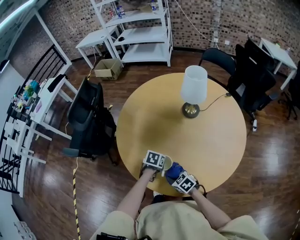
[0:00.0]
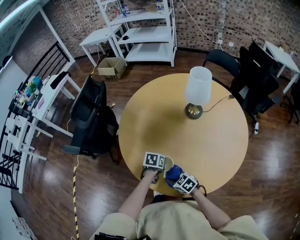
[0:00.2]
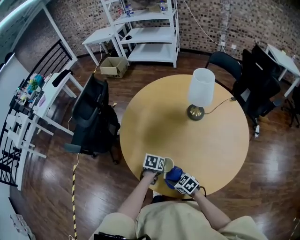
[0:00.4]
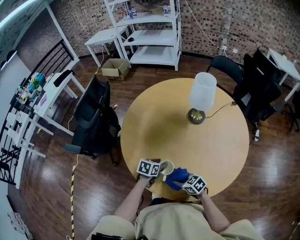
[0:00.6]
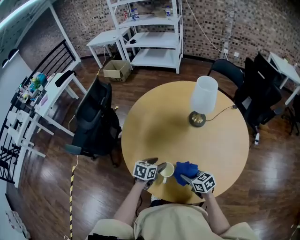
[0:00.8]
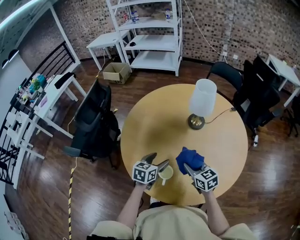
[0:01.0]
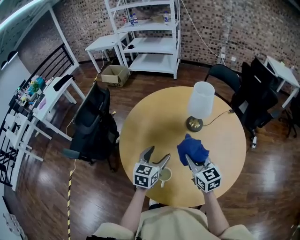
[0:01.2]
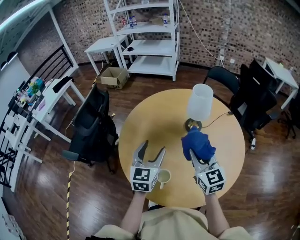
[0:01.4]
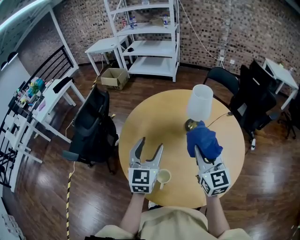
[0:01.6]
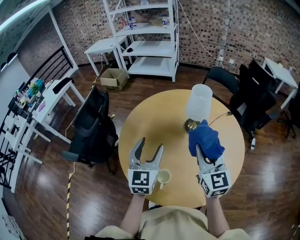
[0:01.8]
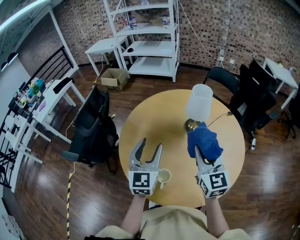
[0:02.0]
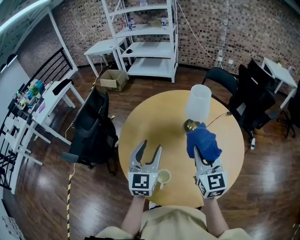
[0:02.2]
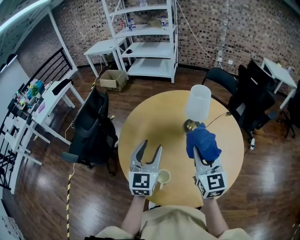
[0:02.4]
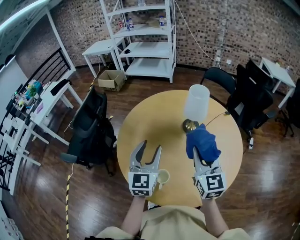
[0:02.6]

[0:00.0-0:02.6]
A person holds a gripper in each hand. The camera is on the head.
0:00.0 to 0:01.2: The grippers both shift upward by roughly 25 cm. The right gripper tilts its fingers some 30 degrees upward, while the left gripper angles its fingers upward, by approximately 40 degrees, and opens.
0:01.2 to 0:02.6: Both grippers move upward, roughly 10 cm. The left gripper rotates some 30 degrees, while the right gripper swivels some 20 degrees.

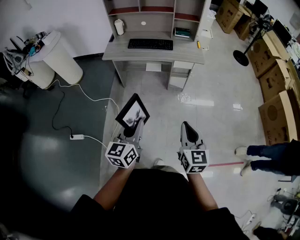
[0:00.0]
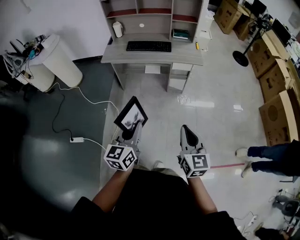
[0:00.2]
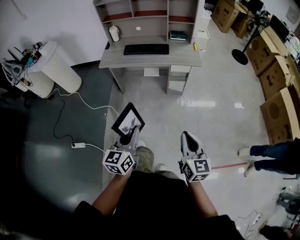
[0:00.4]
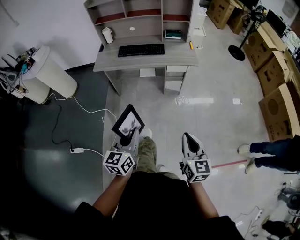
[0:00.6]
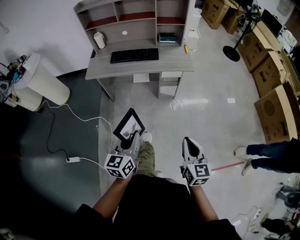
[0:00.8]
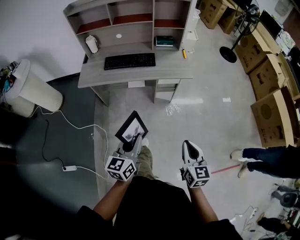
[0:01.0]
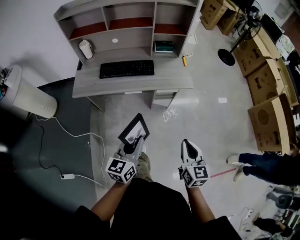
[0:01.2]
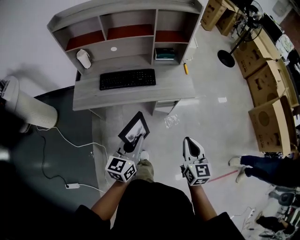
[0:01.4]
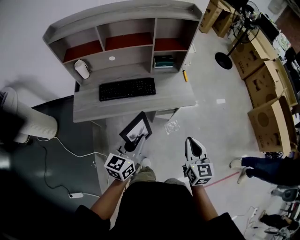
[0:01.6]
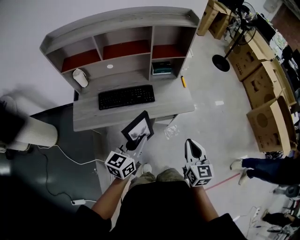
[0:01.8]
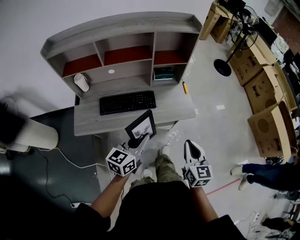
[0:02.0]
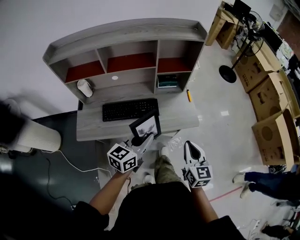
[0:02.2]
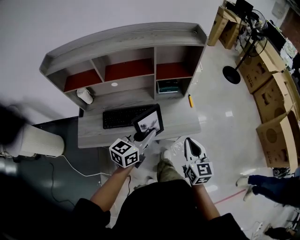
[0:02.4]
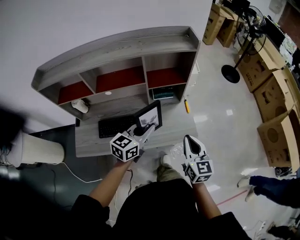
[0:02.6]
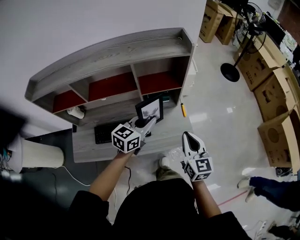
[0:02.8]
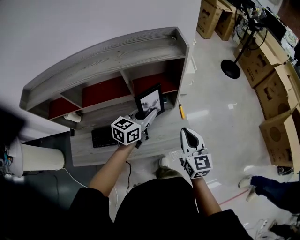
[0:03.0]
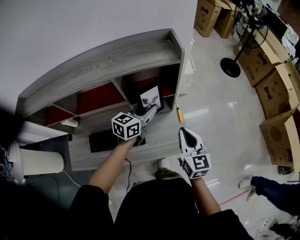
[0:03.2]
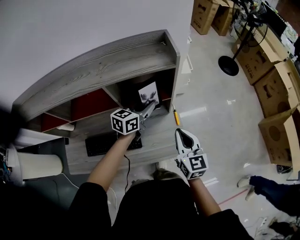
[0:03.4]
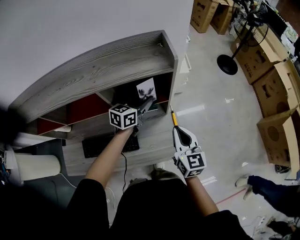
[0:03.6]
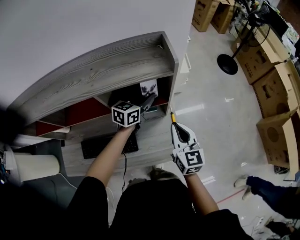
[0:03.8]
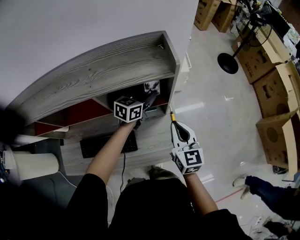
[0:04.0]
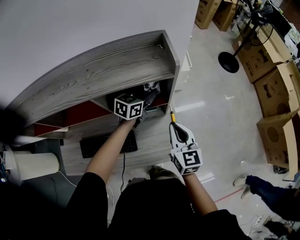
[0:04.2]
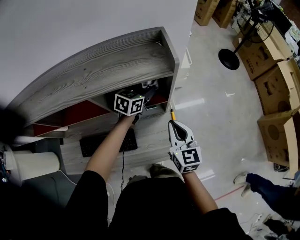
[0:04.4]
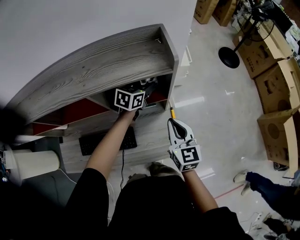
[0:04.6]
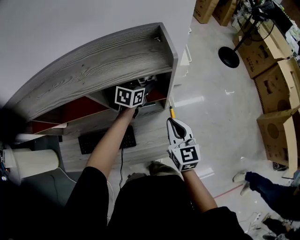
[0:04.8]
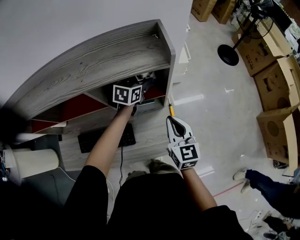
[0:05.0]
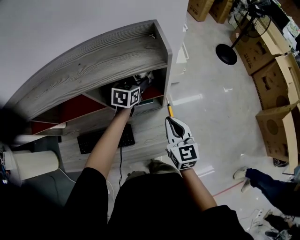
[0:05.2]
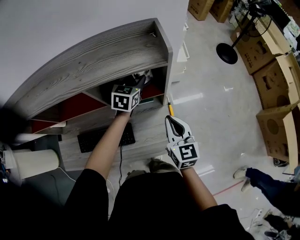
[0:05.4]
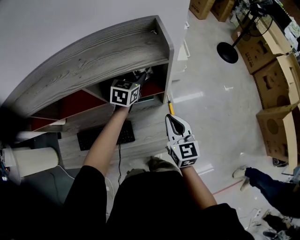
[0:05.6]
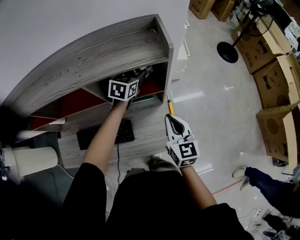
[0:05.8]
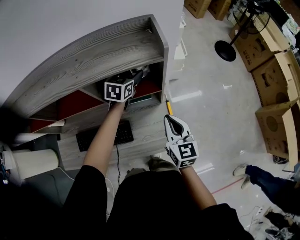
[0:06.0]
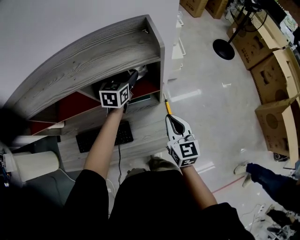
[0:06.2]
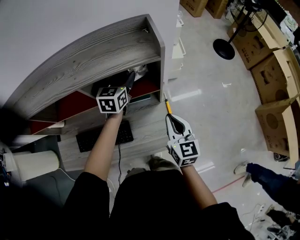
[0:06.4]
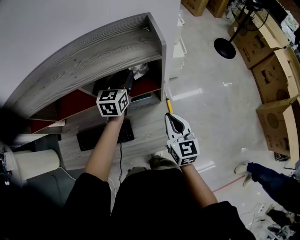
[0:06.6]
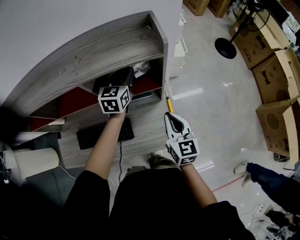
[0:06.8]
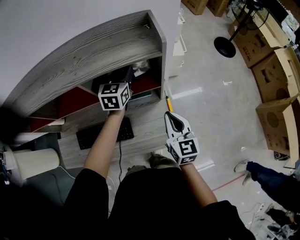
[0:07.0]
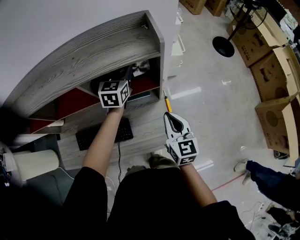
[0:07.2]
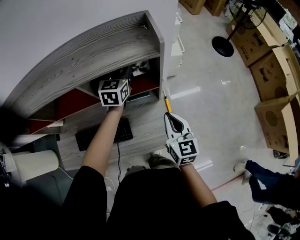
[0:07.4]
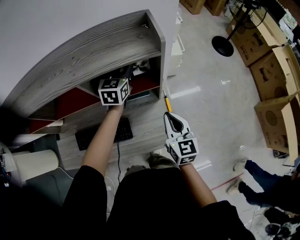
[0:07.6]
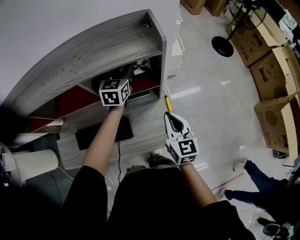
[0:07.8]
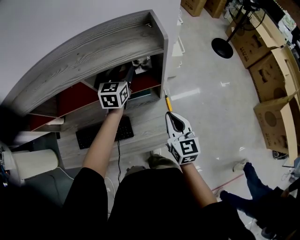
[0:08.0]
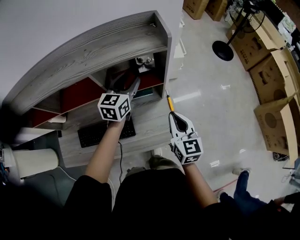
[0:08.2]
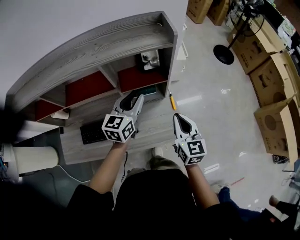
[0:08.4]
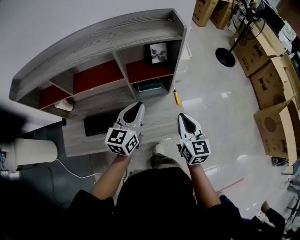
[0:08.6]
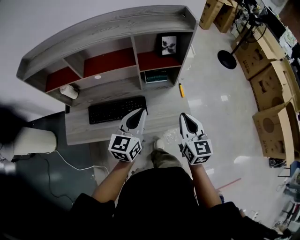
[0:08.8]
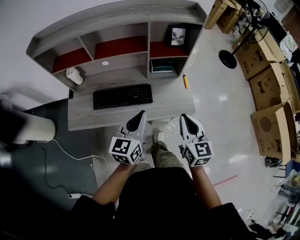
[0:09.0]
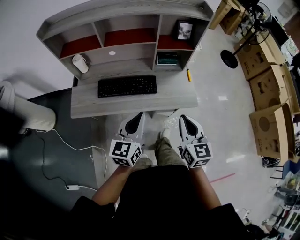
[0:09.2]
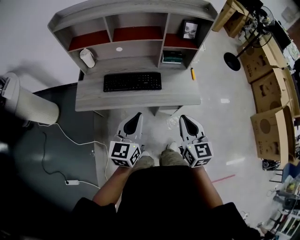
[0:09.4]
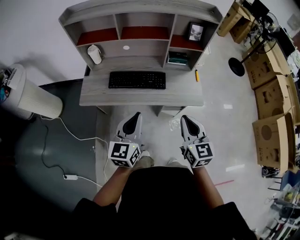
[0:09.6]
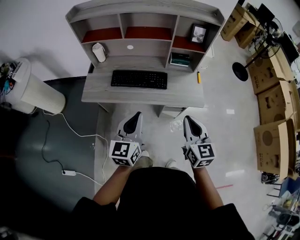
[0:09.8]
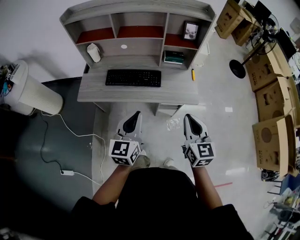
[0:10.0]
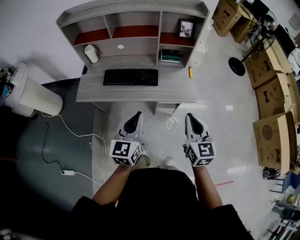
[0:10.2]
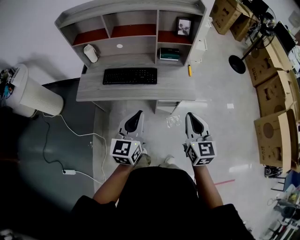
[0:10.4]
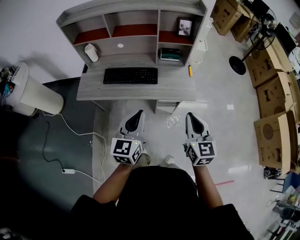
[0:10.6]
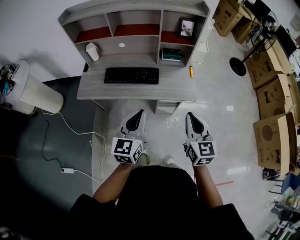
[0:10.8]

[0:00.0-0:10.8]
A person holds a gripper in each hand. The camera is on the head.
0:00.0 to 0:01.6: The pair of grippers is taken forward, approximately 40 cm. The left gripper swivels roughly 20 degrees.
0:01.6 to 0:03.0: Both grippers travel together forward, about 40 cm.
0:03.0 to 0:04.6: The left gripper shifts some 25 cm forward; the right gripper goes approximately 15 cm forward.
0:04.6 to 0:06.2: The left gripper goes approximately 5 cm to the left, and opens.
0:06.2 to 0:07.8: The grippers stay close to where they were, moving slightly.
0:07.8 to 0:09.2: The left gripper is displaced backward by approximately 60 cm, and closes. The right gripper shifts some 35 cm backward.
0:09.2 to 0:10.8: The right gripper is displaced backward and to the right by roughly 10 cm. The left gripper heads backward, covering roughly 10 cm.

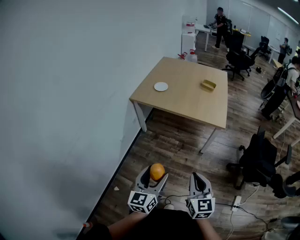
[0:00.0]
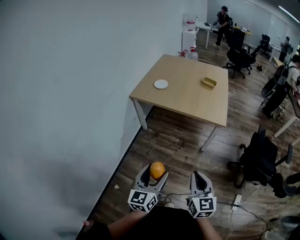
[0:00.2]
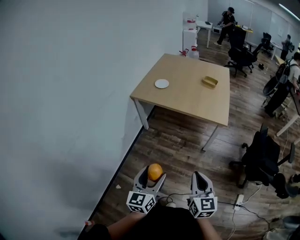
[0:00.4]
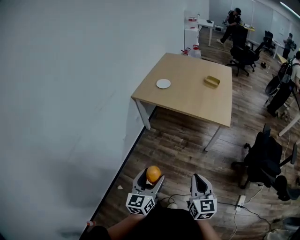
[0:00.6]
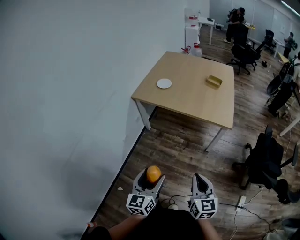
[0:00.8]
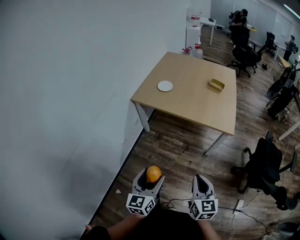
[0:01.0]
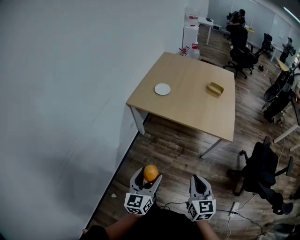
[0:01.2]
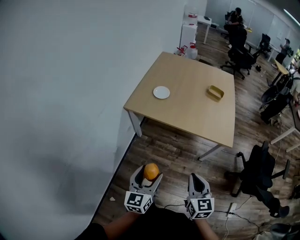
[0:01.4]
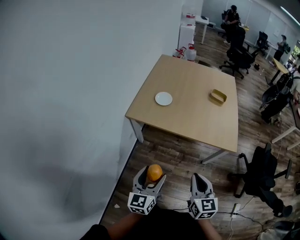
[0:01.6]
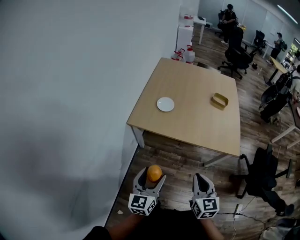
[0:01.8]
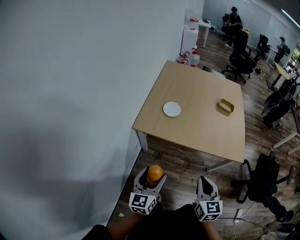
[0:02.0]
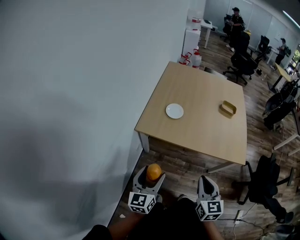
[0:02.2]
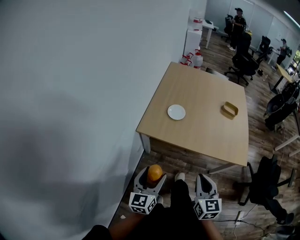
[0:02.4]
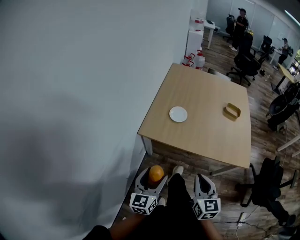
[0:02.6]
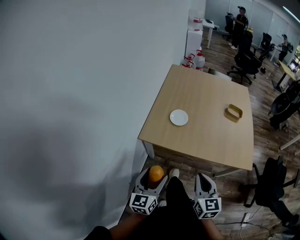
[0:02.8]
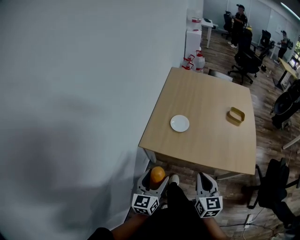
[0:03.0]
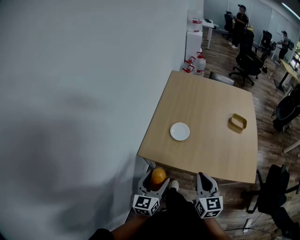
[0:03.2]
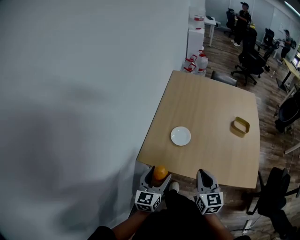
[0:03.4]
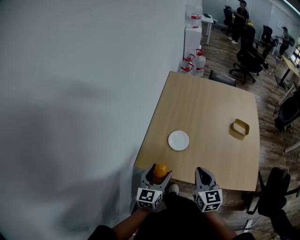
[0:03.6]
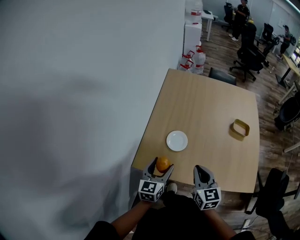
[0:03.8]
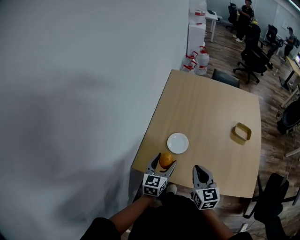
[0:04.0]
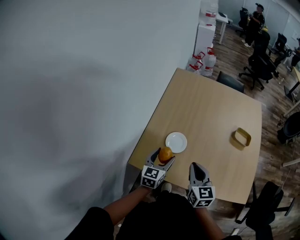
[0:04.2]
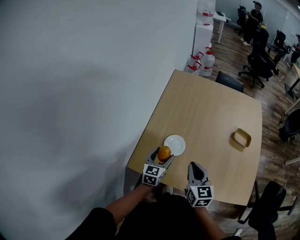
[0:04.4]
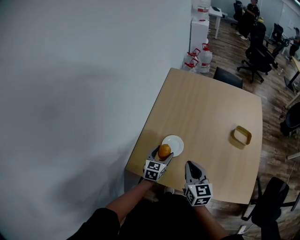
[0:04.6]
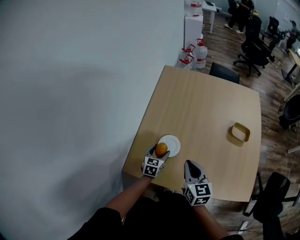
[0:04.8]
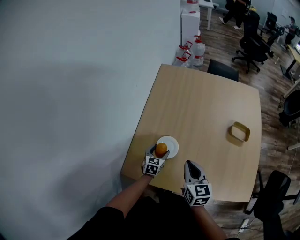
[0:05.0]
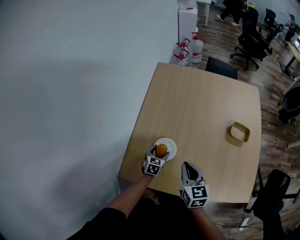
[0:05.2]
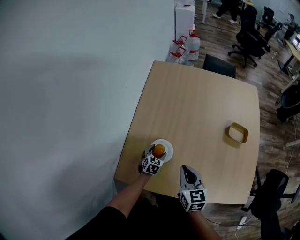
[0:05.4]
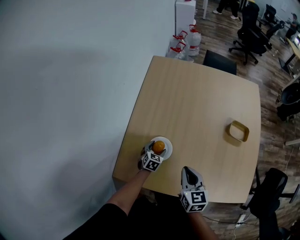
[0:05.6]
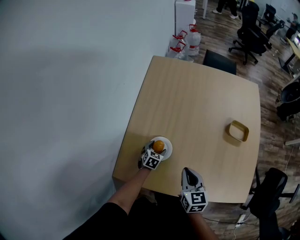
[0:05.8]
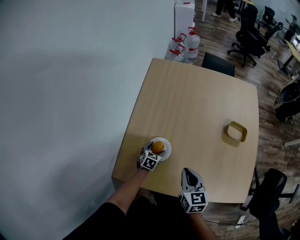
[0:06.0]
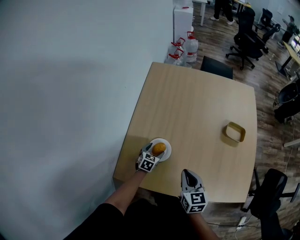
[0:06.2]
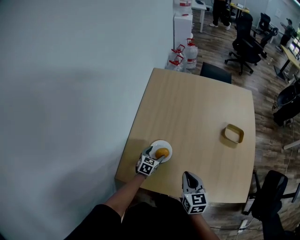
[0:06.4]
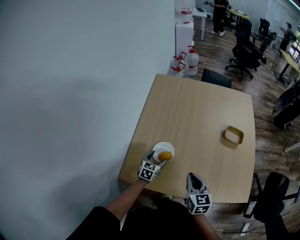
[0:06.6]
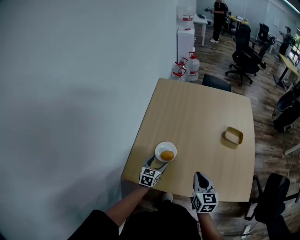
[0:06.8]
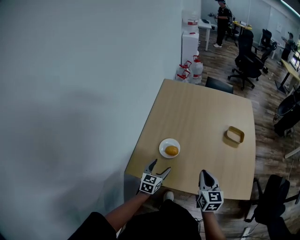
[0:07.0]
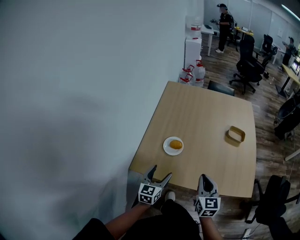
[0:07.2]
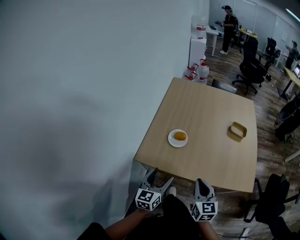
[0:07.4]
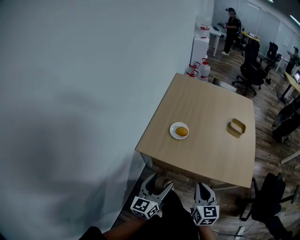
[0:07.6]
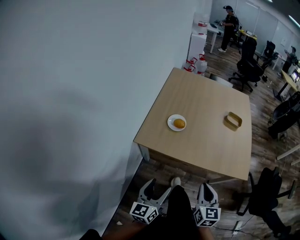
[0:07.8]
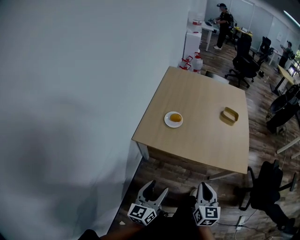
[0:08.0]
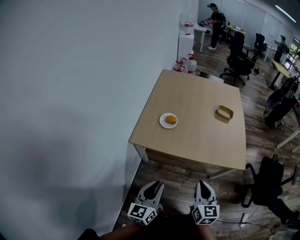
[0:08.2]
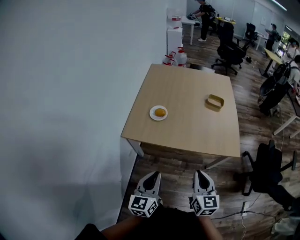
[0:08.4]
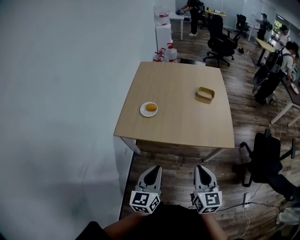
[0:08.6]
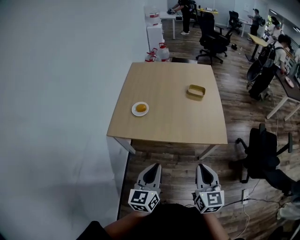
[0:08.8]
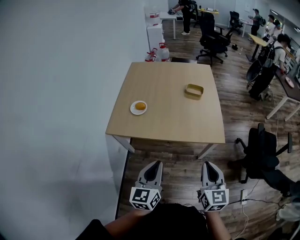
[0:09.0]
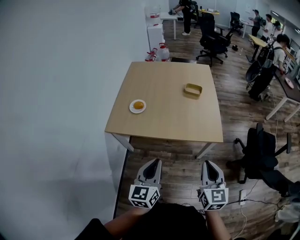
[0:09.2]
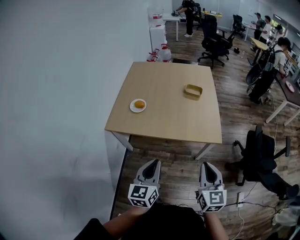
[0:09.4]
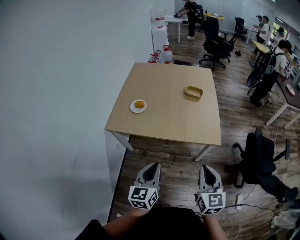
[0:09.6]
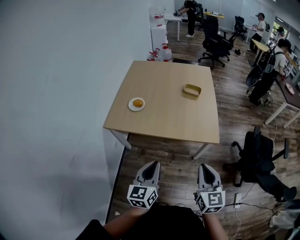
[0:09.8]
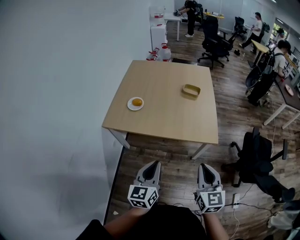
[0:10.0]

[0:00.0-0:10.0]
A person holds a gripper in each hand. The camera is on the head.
0:00.0 to 0:01.4: The two grippers go approximately 25 cm forward.
0:01.4 to 0:02.8: The grippers both shift forward and to the left by approximately 25 cm.
0:02.8 to 0:04.2: Both grippers move forward, roughly 35 cm.
0:04.2 to 0:05.8: The left gripper moves downward and forward, about 30 cm, and tips its fingers downward by some 30 degrees. The right gripper travels downward, forward and to the right by about 10 cm.
0:05.8 to 0:07.2: The left gripper travels backward and upward by some 35 cm, and angles its fingers upward, by approximately 30 degrees; the right gripper heads backward and upward, covering about 20 cm.
0:07.2 to 0:08.6: The right gripper travels backward by approximately 30 cm. The left gripper moves backward, to the right and upward, about 35 cm, and closes its fingers.
0:08.6 to 0:10.0: Both grippers move to the right, roughly 15 cm.
